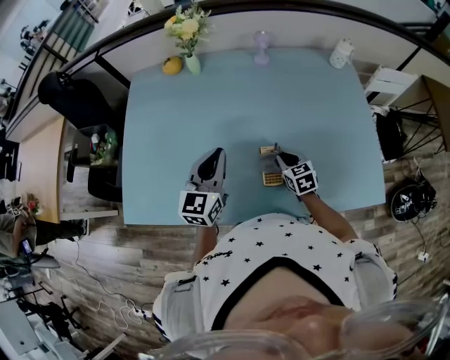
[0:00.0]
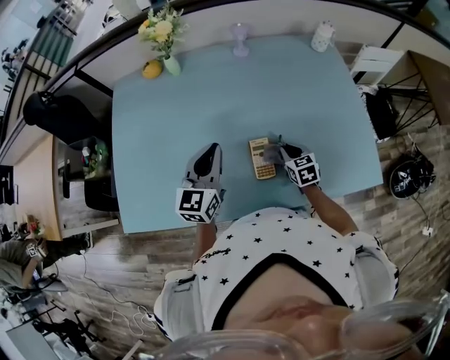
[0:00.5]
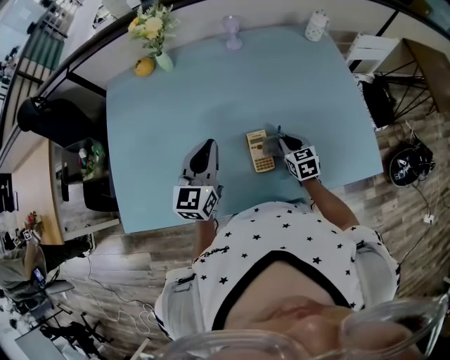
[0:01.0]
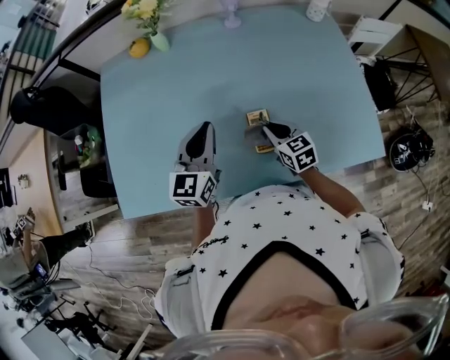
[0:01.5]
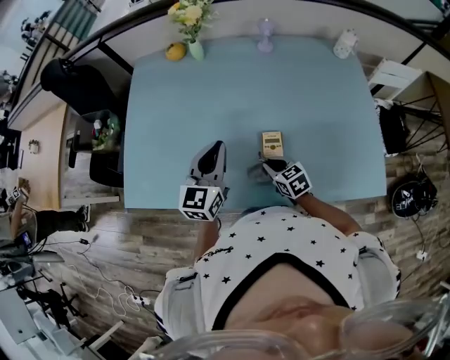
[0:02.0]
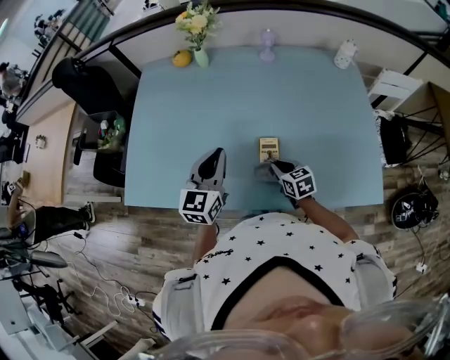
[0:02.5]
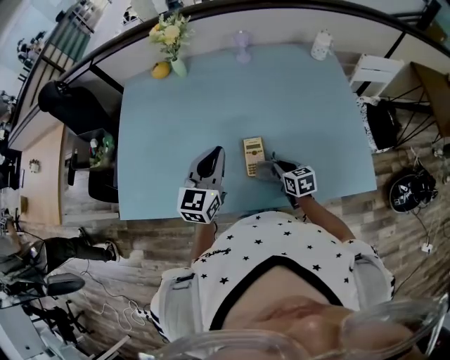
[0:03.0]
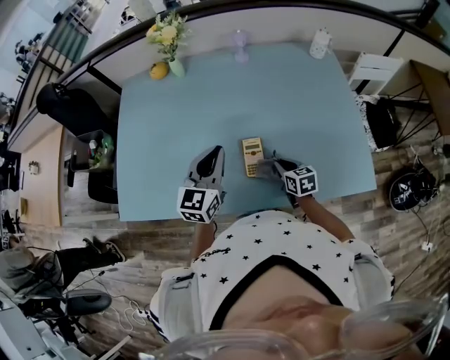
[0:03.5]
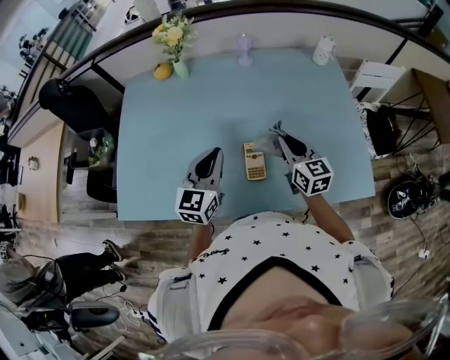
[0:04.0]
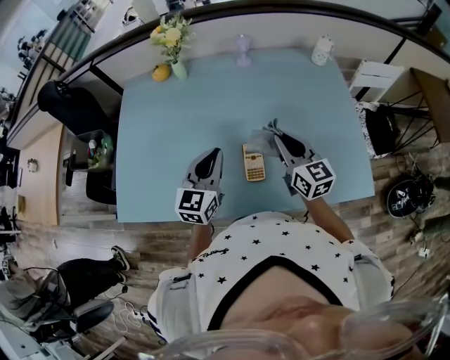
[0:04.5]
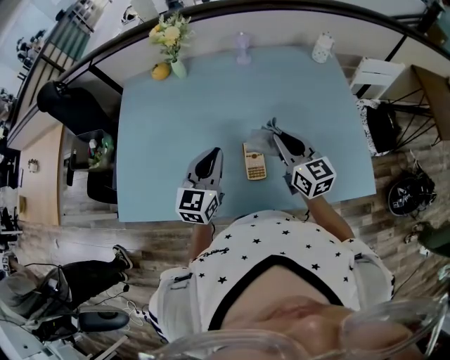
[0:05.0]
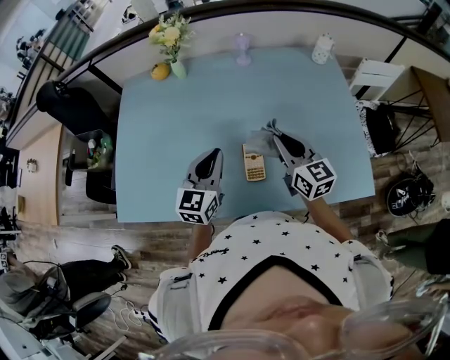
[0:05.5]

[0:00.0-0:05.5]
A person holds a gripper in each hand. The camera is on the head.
0:00.0 to 0:02.0: The right gripper travels backward and to the left by about 10 cm.
0:02.0 to 0:03.5: The right gripper heads to the right, covering roughly 10 cm, and changes its angle by about 20 degrees. The left gripper goes roughly 5 cm to the right.
0:03.5 to 0:05.5: The right gripper travels upward by about 20 cm, and tips its fingers upward by roughly 30 degrees.

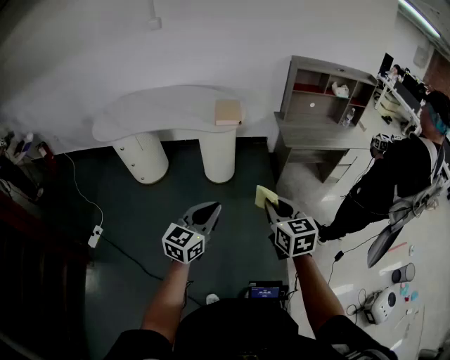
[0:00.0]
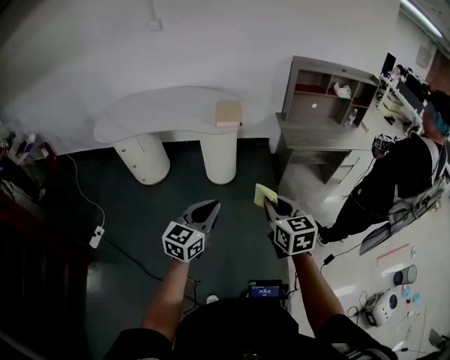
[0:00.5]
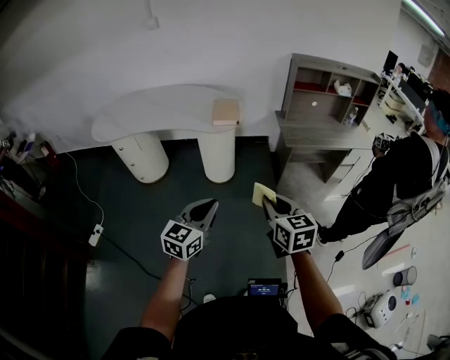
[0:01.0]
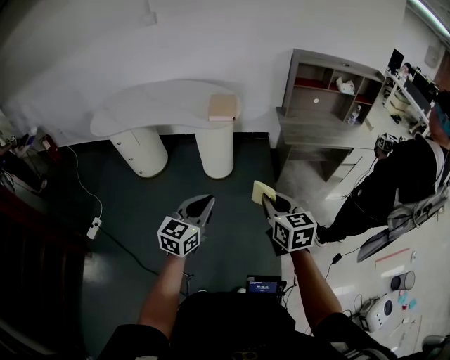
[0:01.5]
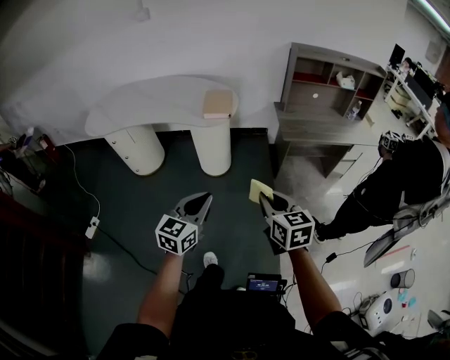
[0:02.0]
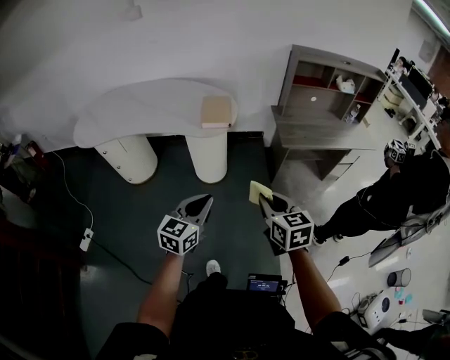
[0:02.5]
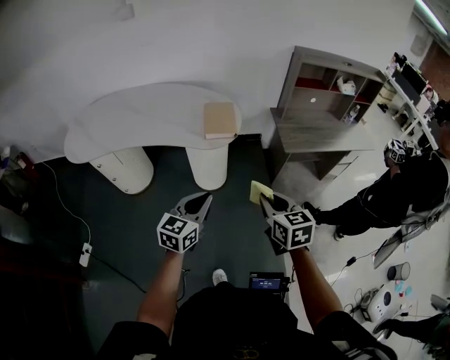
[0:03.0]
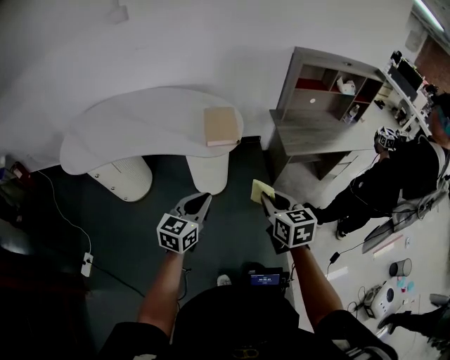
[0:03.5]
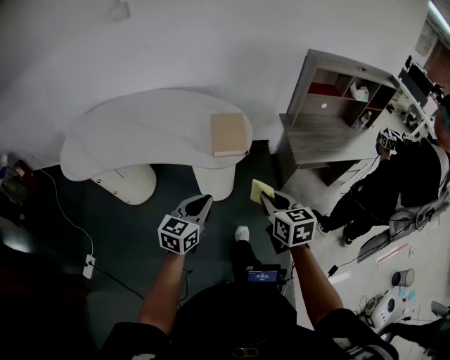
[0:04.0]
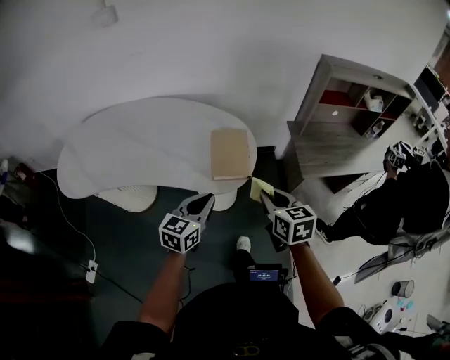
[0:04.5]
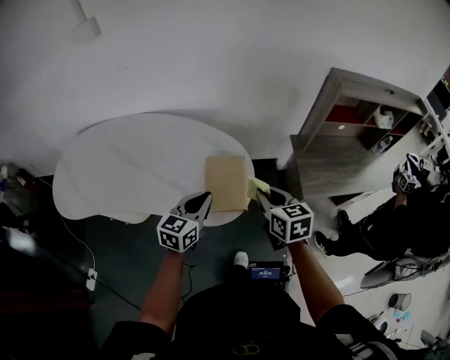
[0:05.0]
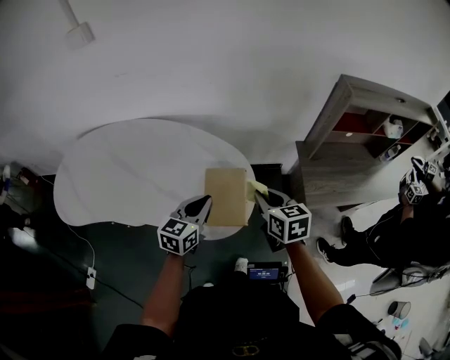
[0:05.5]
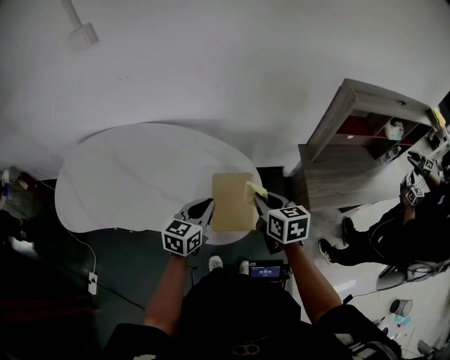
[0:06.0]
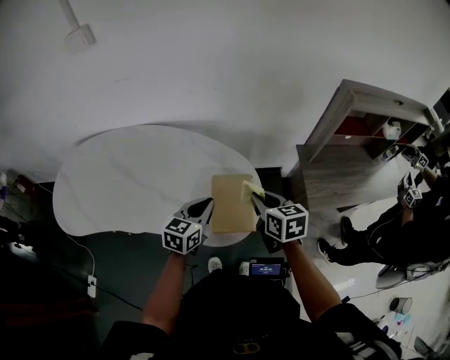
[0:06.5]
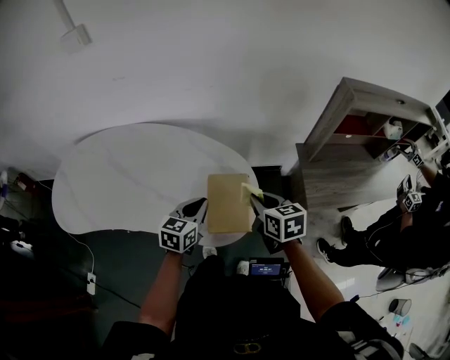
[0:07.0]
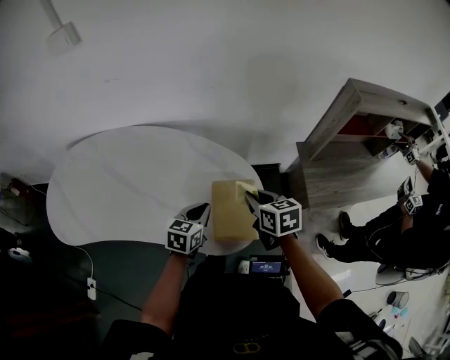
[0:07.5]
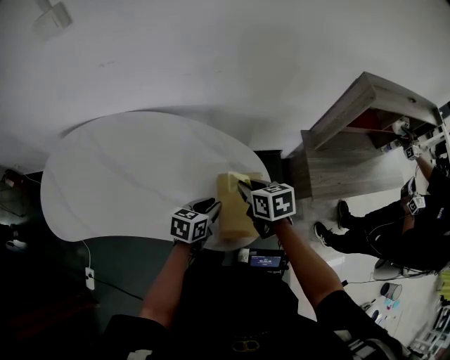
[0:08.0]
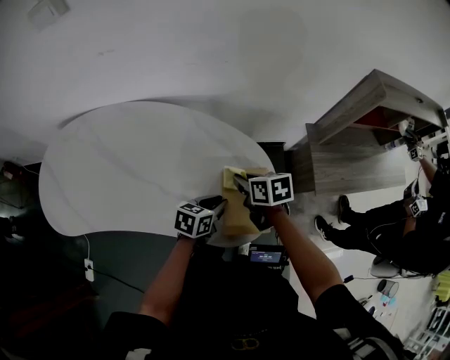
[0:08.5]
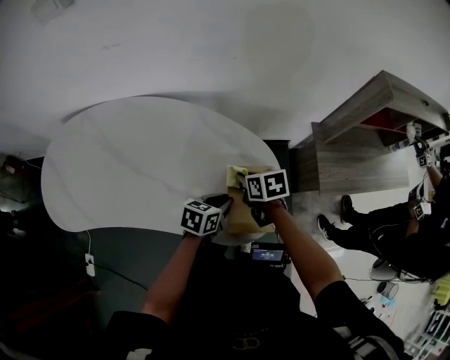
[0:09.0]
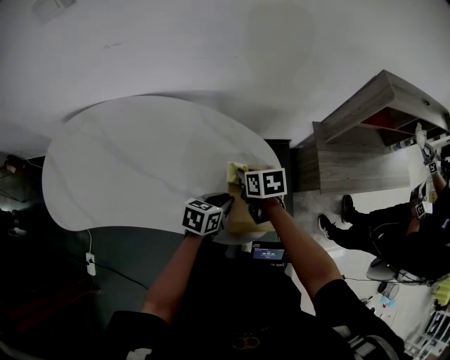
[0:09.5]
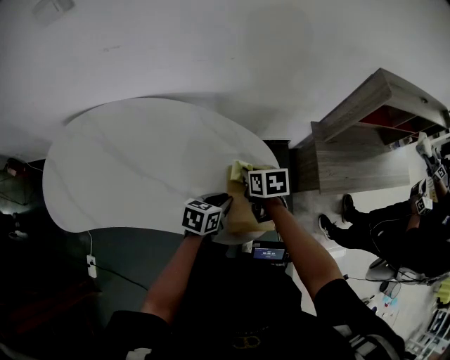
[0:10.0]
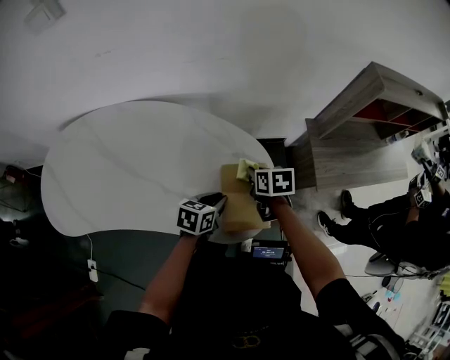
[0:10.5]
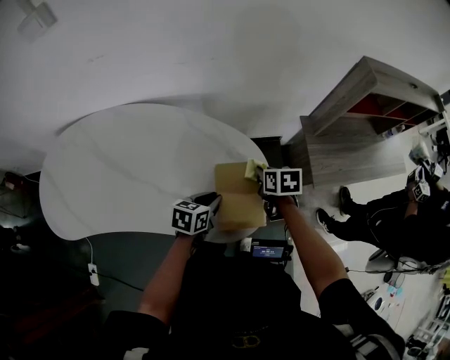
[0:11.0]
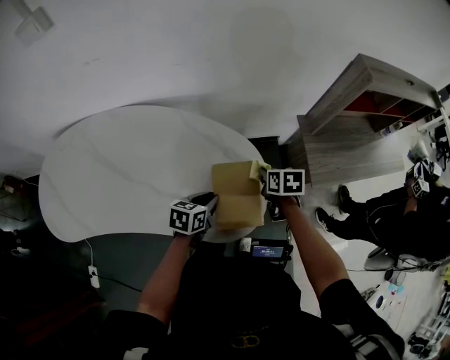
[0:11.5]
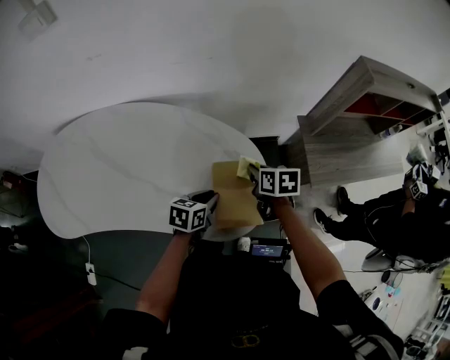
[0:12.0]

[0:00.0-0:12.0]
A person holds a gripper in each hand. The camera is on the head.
0:00.0 to 0:02.0: The two grippers go approximately 10 cm forward and to the right.
0:02.0 to 0:04.0: Both grippers travel together forward and to the left, about 30 cm.
0:04.0 to 0:06.0: The grippers both shift forward by about 35 cm.
0:06.0 to 0:08.0: The left gripper moves downward, about 10 cm, and turns by about 20 degrees, while the right gripper goes about 15 cm to the left, forward and downward.
0:08.0 to 0:10.0: The right gripper is displaced downward by some 5 cm.
0:10.0 to 0:12.0: The right gripper is displaced to the right by approximately 5 cm.

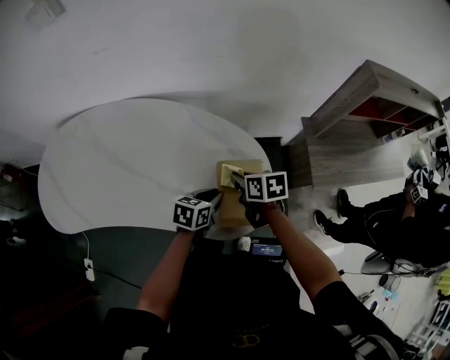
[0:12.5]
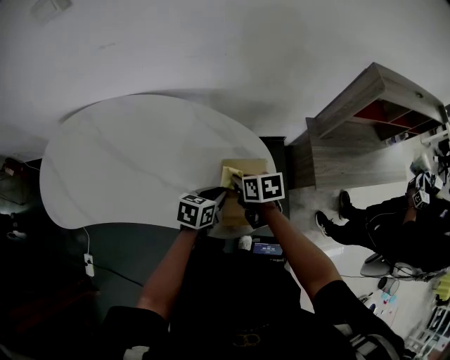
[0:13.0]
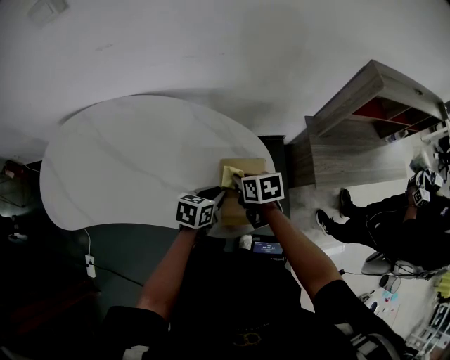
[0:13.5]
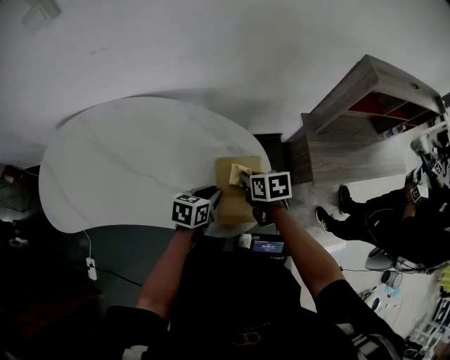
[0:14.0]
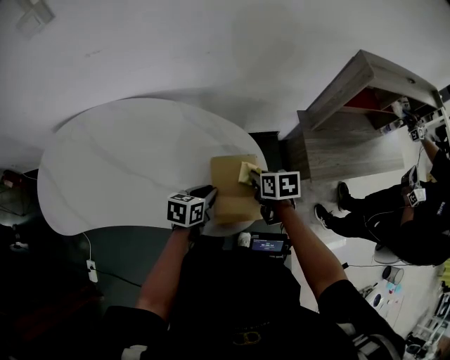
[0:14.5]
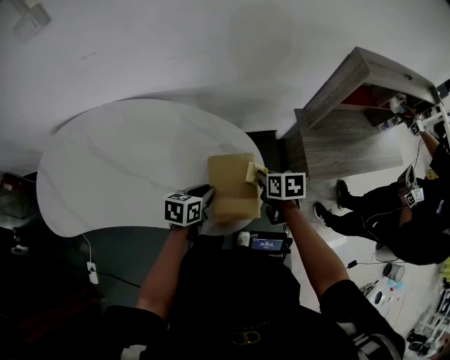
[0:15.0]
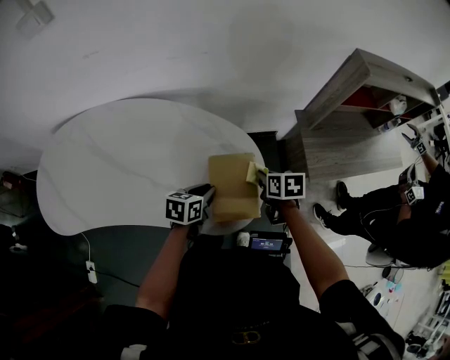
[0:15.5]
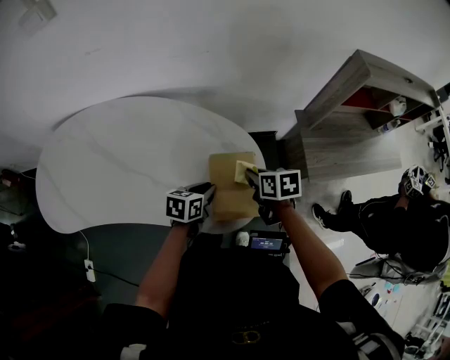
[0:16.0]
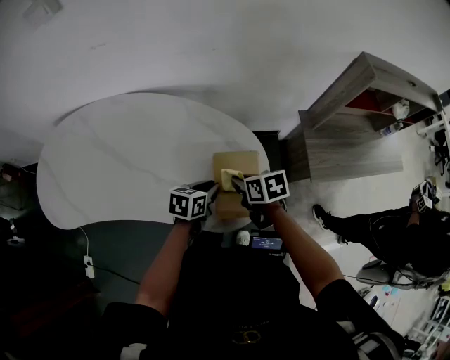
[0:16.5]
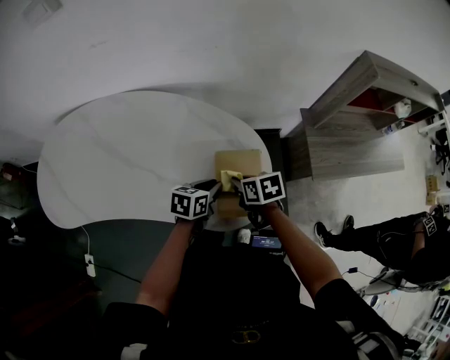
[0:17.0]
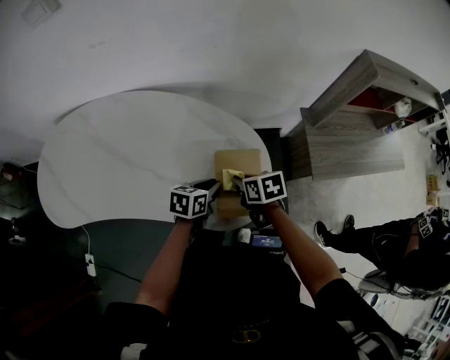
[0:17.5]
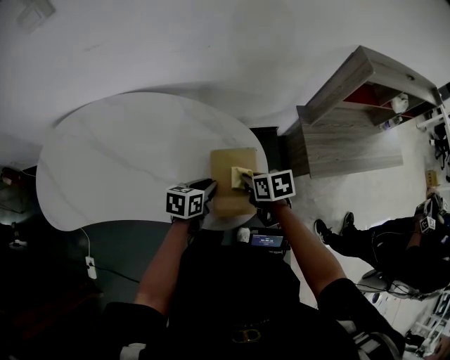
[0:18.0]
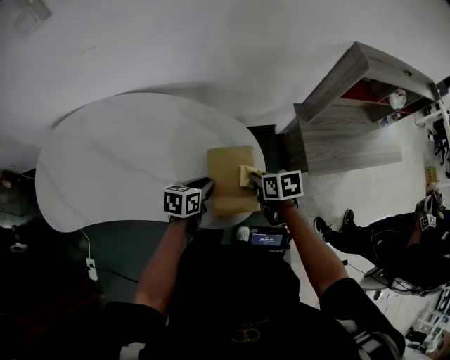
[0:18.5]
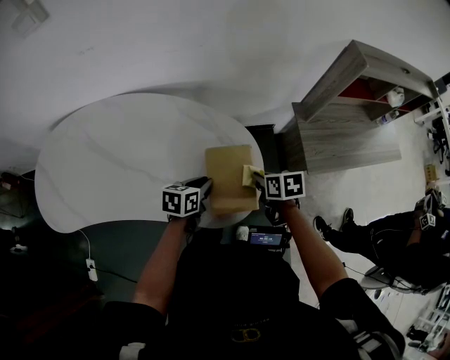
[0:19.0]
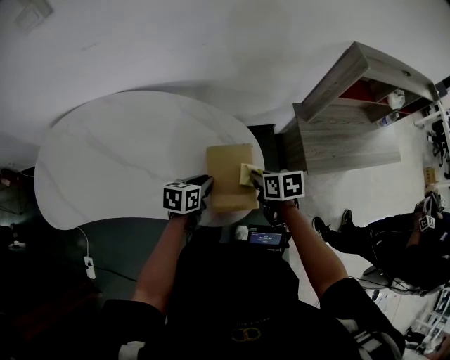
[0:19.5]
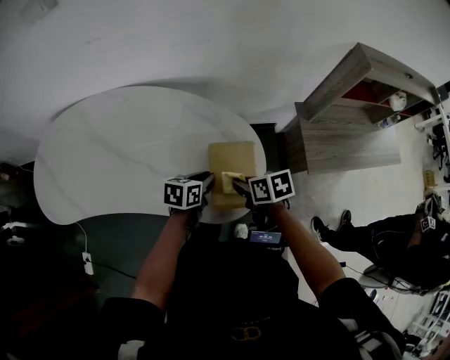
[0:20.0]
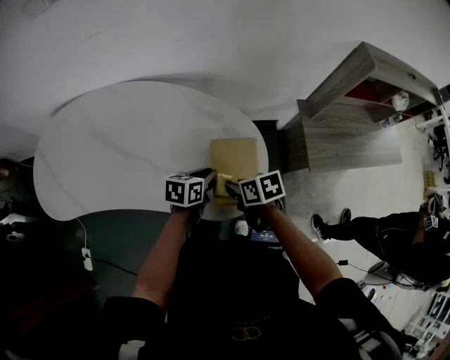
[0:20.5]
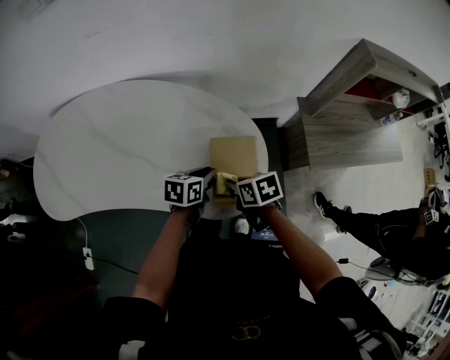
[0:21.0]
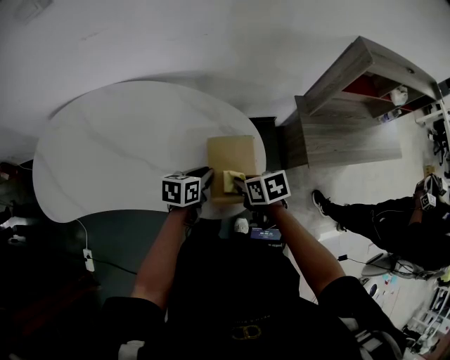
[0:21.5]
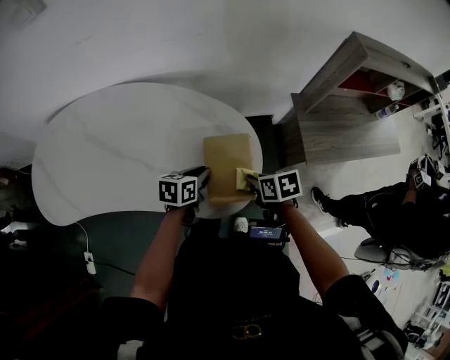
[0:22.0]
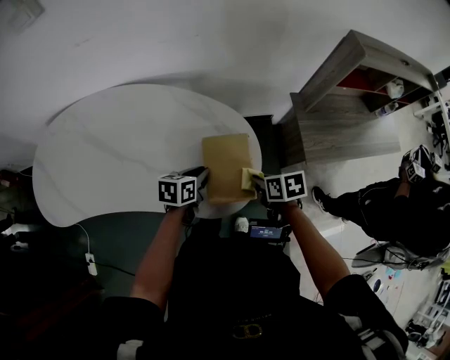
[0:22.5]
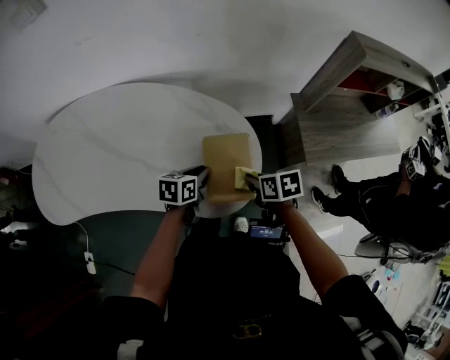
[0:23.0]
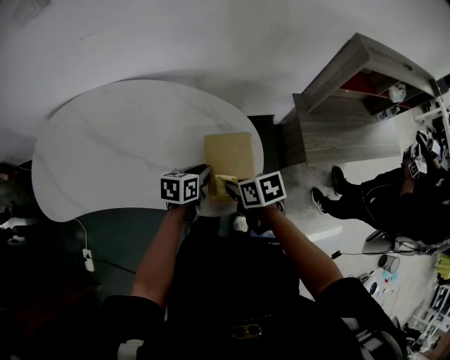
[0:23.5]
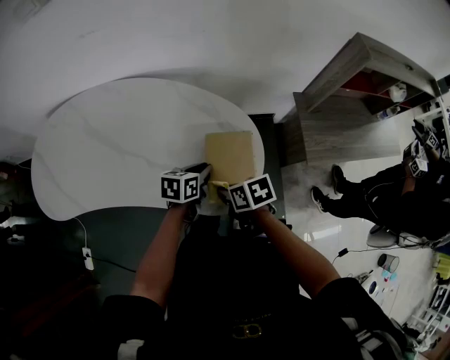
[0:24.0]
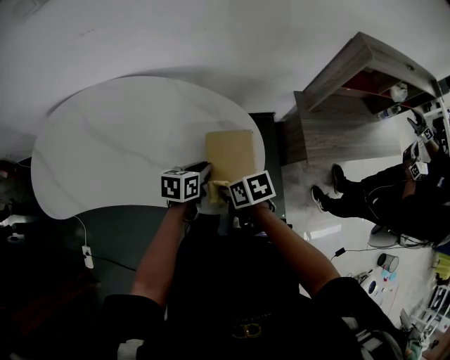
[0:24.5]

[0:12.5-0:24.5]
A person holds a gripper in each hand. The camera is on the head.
0:12.5 to 0:14.5: The right gripper travels to the right by roughly 10 cm.
0:14.5 to 0:16.5: The right gripper moves to the left, about 5 cm.
0:16.5 to 0:18.5: The right gripper shifts some 10 cm to the right.
0:18.5 to 0:20.5: The right gripper heads to the left, covering about 10 cm.
0:20.5 to 0:22.5: The right gripper travels to the right by about 10 cm.
0:22.5 to 0:24.5: The right gripper heads to the left, covering some 10 cm.
